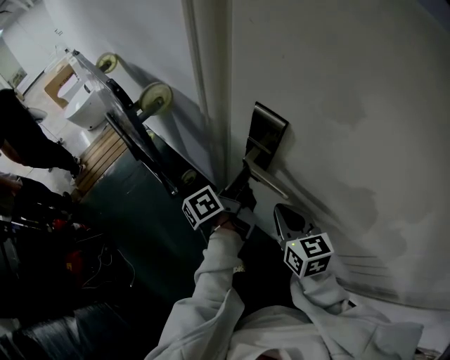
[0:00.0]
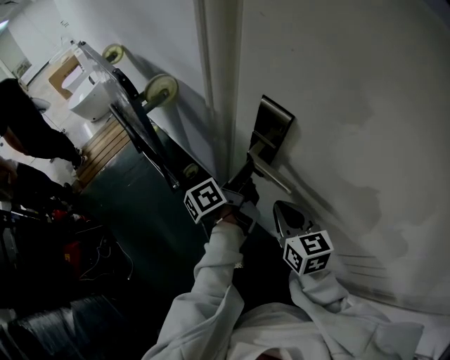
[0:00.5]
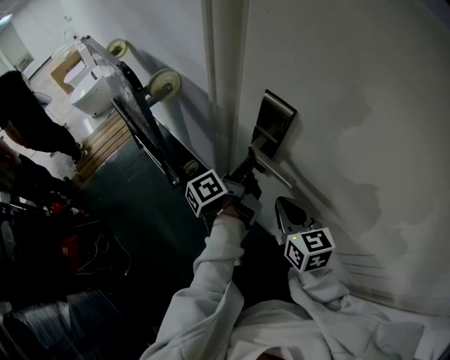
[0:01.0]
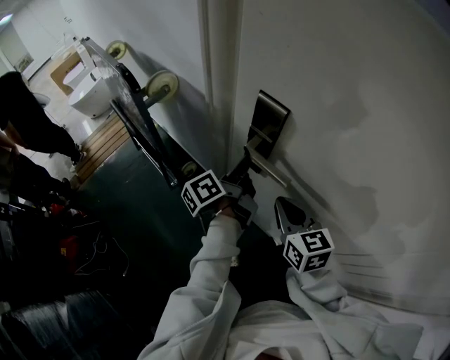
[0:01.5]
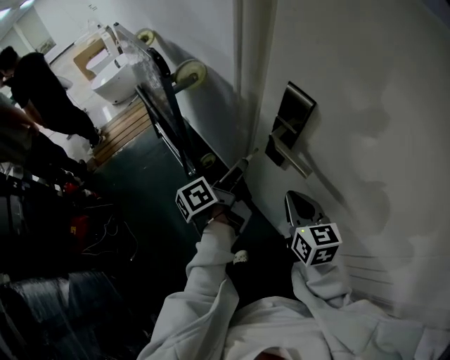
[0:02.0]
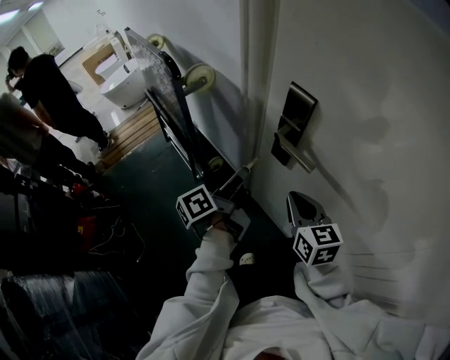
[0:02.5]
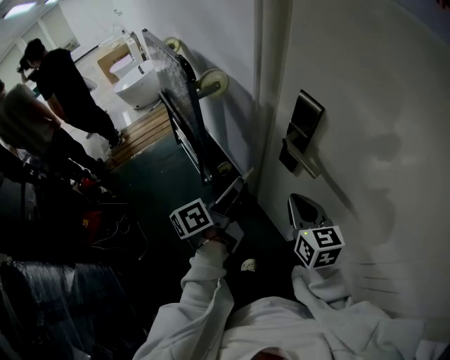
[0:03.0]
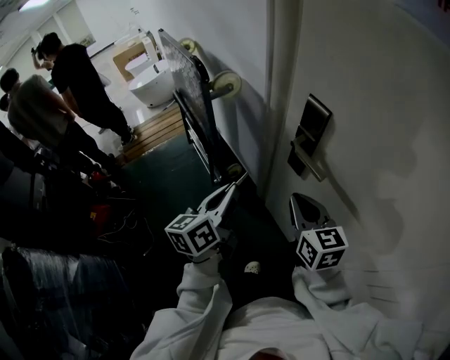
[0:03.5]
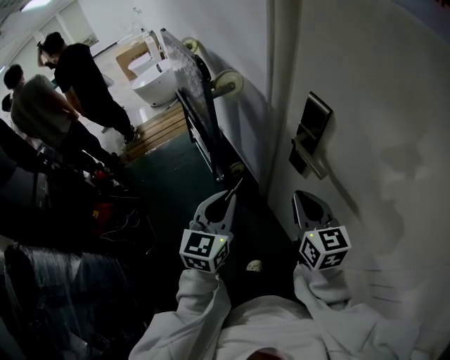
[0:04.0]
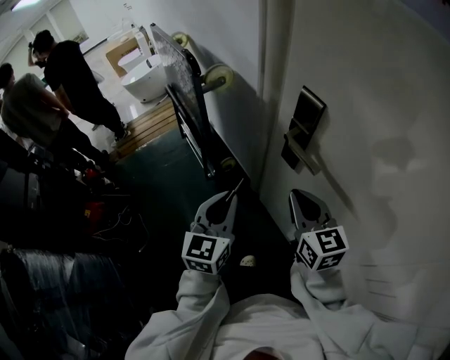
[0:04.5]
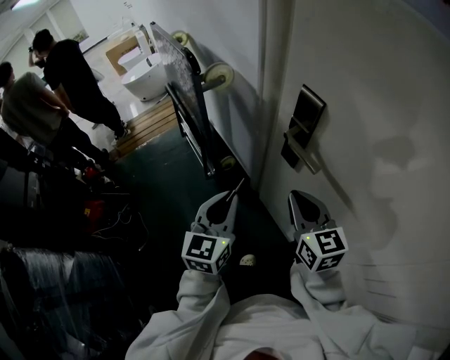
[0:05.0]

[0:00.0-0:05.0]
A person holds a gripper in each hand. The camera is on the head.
0:00.0 to 0:02.5: The left gripper goes approximately 10 cm backward and to the left.
0:02.5 to 0:05.0: The left gripper goes roughly 10 cm backward, and rotates around the line of its fingers by roughly 70 degrees, clockwise from behind.

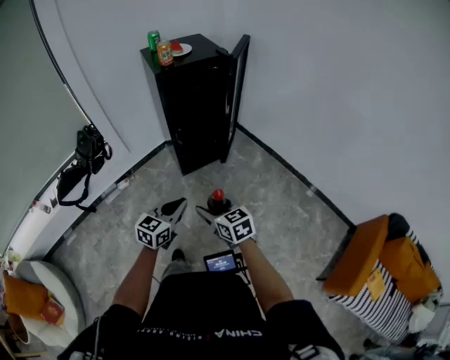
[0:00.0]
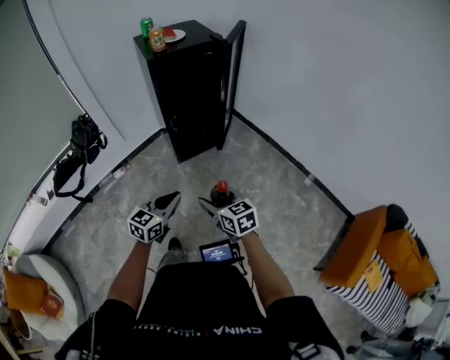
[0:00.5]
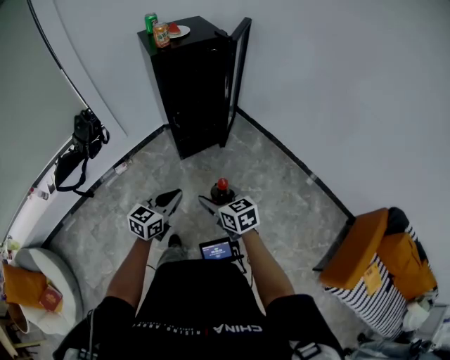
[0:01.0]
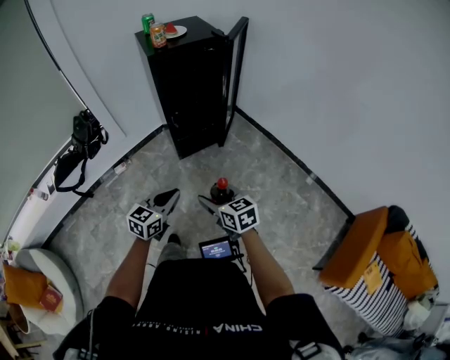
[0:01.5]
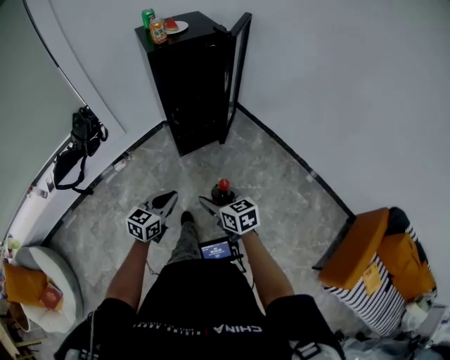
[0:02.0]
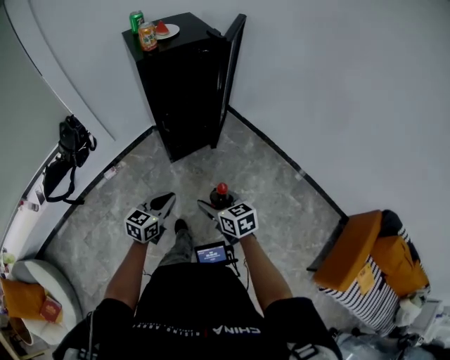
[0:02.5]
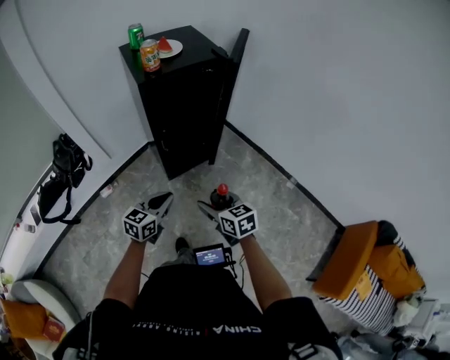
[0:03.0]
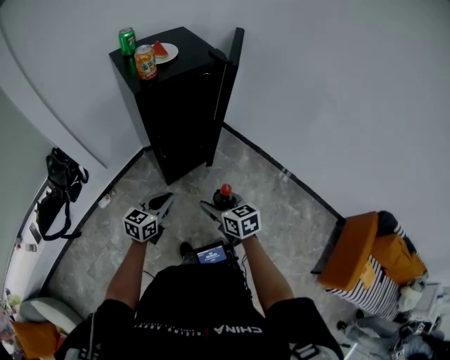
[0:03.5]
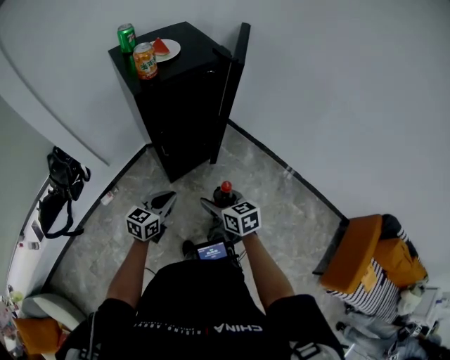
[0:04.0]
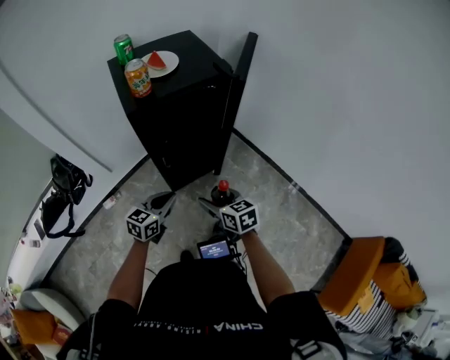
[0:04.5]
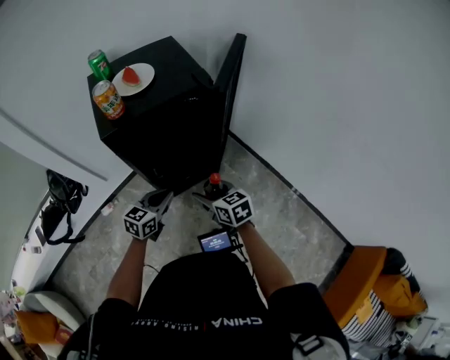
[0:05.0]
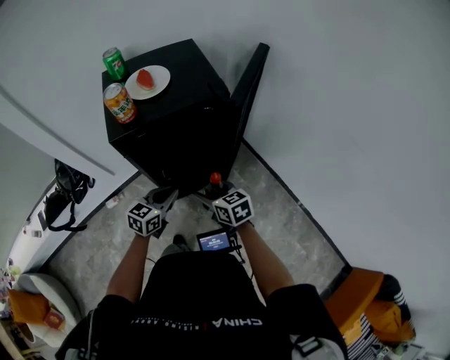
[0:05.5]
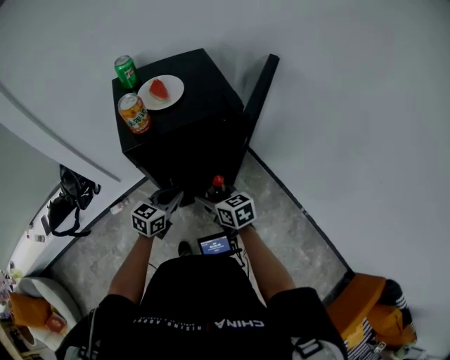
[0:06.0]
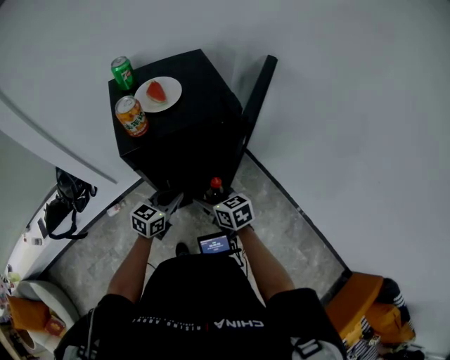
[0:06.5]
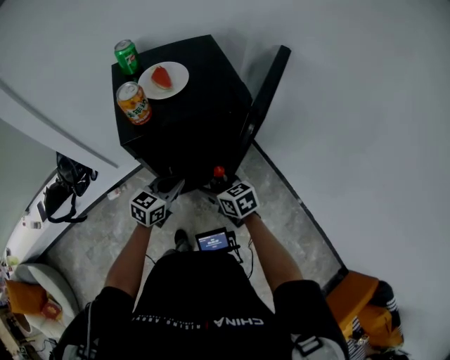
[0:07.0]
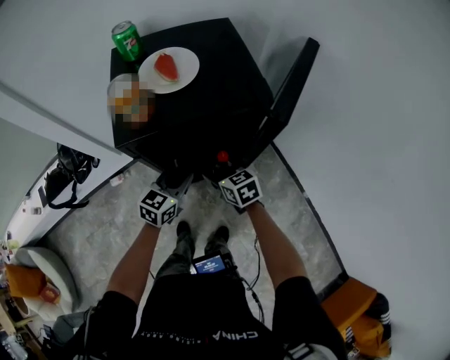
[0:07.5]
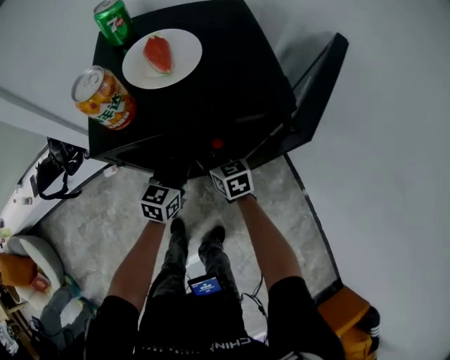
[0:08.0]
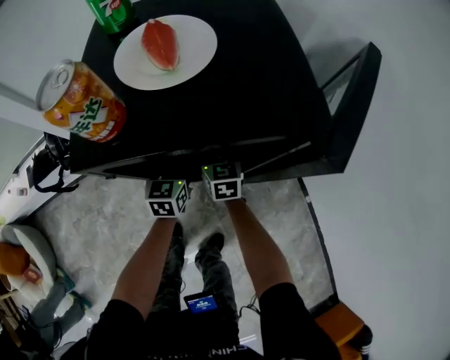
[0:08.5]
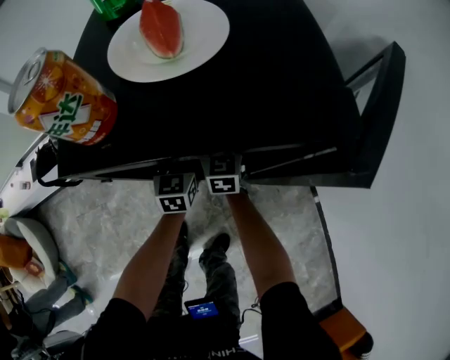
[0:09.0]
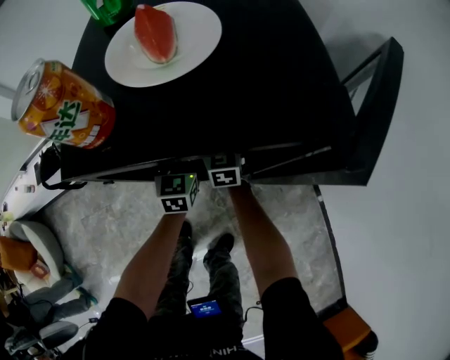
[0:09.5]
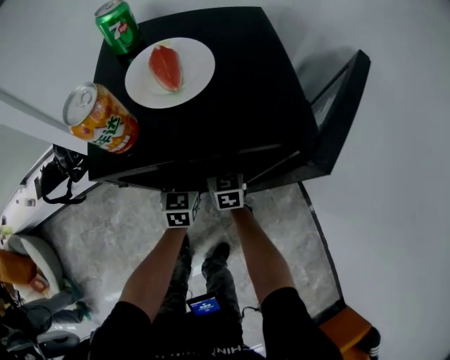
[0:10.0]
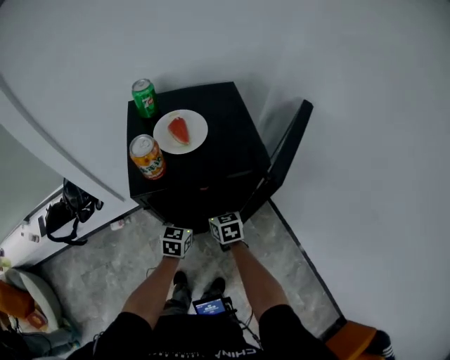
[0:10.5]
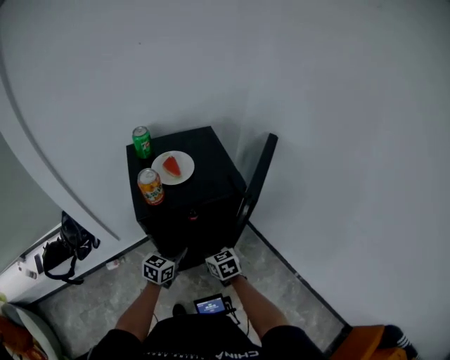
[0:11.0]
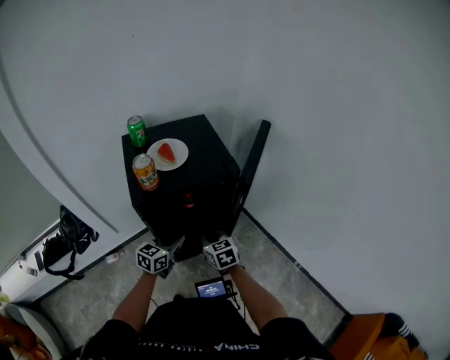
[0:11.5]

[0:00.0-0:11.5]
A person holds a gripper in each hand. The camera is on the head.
0:00.0 to 0:02.0: The right gripper moves approximately 5 cm.
0:02.0 to 0:04.0: Both grippers move forward, approximately 25 cm.
0:04.0 to 0:06.0: The two grippers go approximately 25 cm forward.
0:06.0 to 0:07.5: The left gripper moves forward, about 5 cm. The right gripper travels forward and downward by approximately 10 cm.
0:07.5 to 0:09.5: The right gripper goes about 20 cm forward, and turns by some 20 degrees; the left gripper travels forward and downward by roughly 20 cm, and changes its angle by approximately 40 degrees.
0:09.5 to 0:11.5: The two grippers go roughly 25 cm backward and upward. The right gripper closes, while the left gripper swivels approximately 50 degrees.

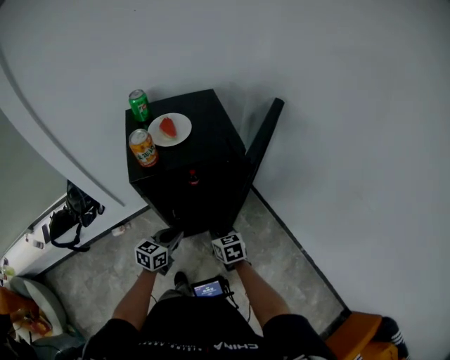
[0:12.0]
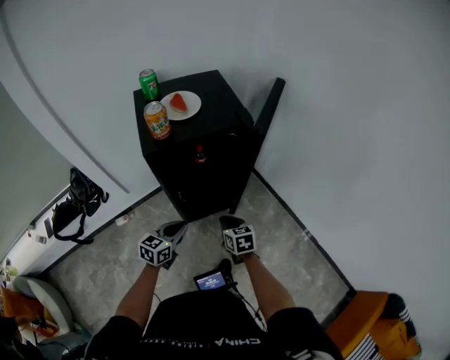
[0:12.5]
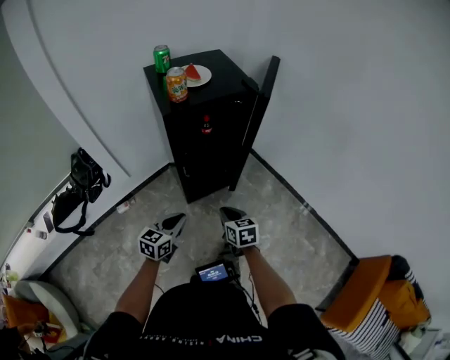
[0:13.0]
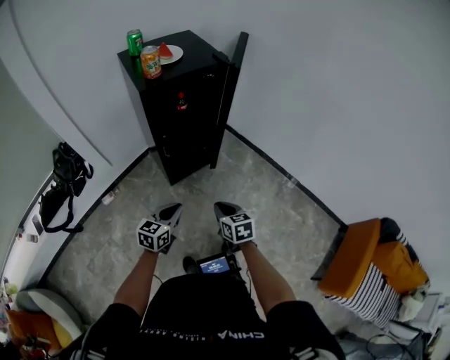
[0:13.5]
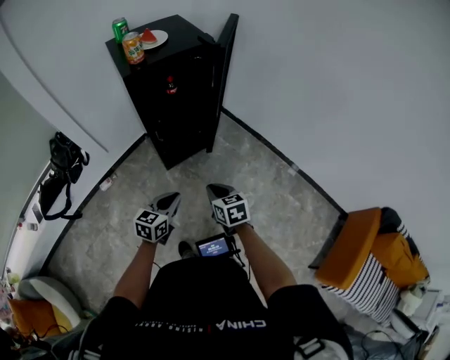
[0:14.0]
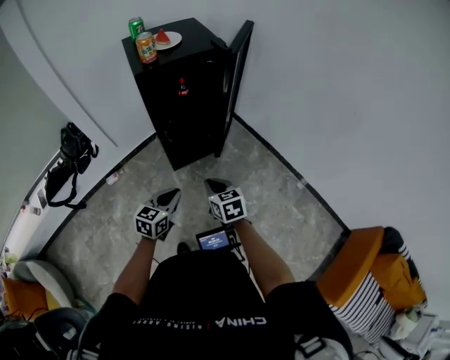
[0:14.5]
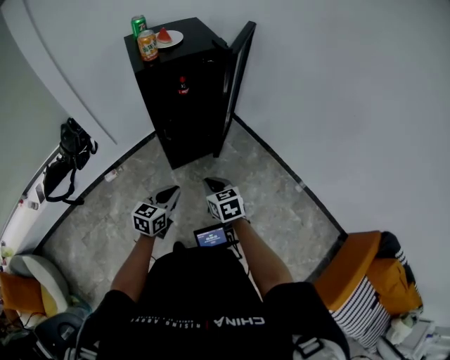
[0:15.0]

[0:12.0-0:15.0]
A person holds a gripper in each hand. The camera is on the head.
0:12.0 to 0:13.5: The two grippers go about 30 cm backward.
0:13.5 to 0:15.0: The left gripper heads to the right, covering about 5 cm.

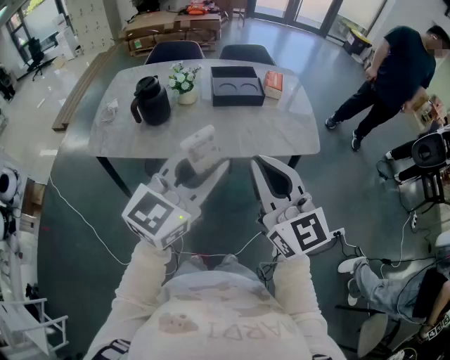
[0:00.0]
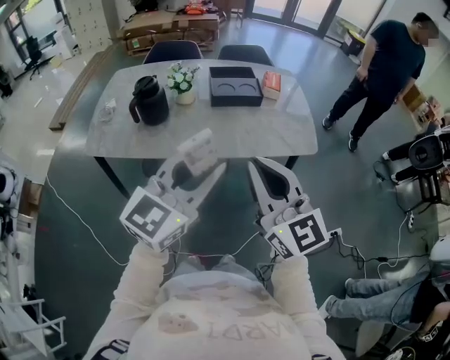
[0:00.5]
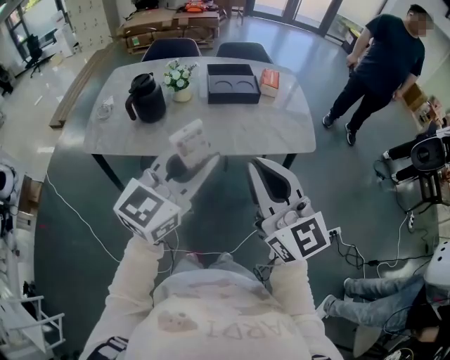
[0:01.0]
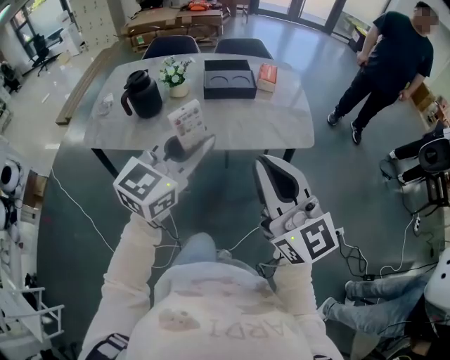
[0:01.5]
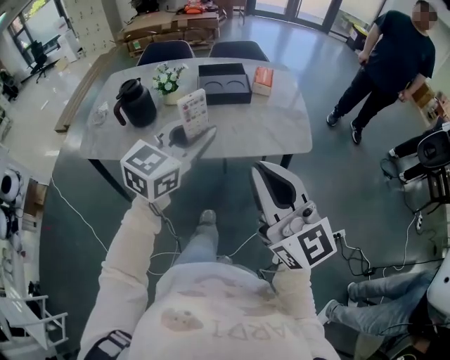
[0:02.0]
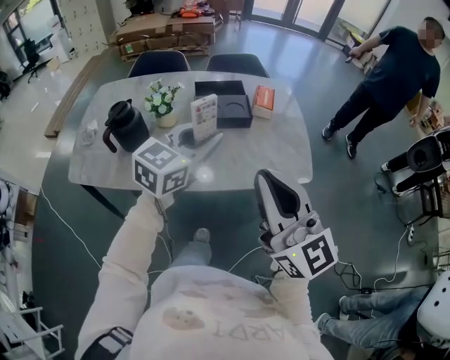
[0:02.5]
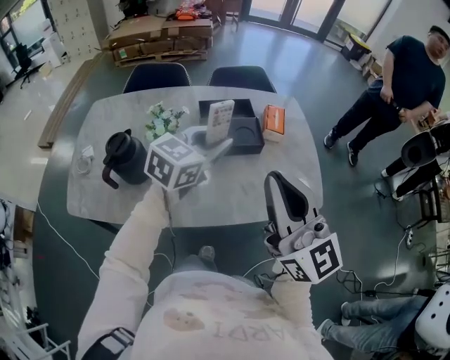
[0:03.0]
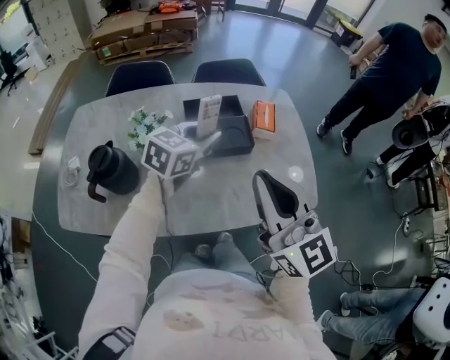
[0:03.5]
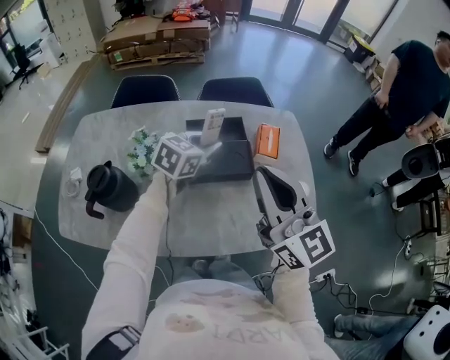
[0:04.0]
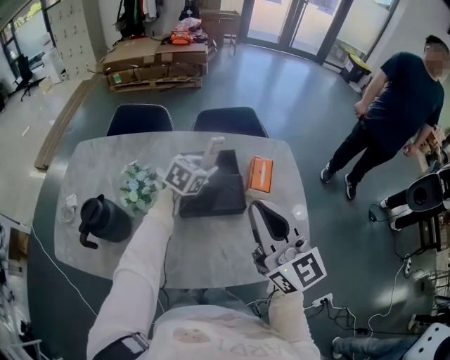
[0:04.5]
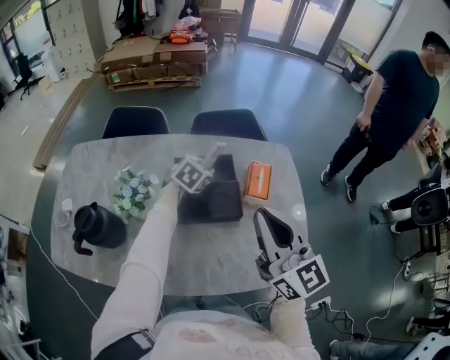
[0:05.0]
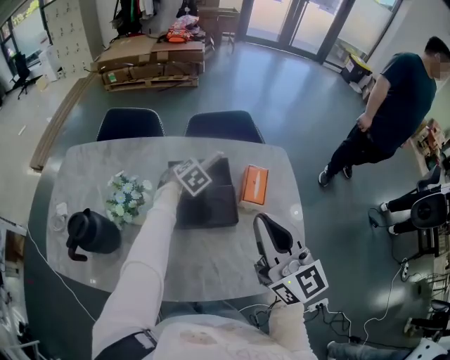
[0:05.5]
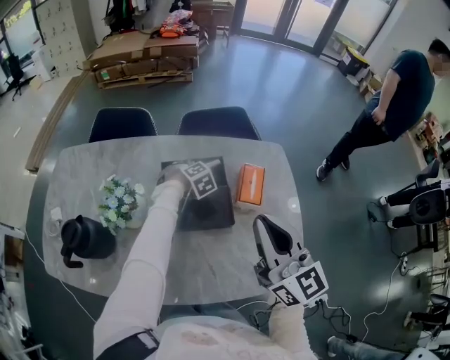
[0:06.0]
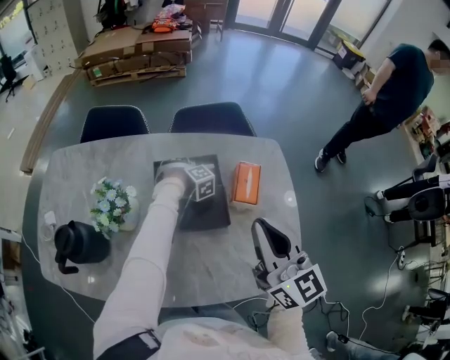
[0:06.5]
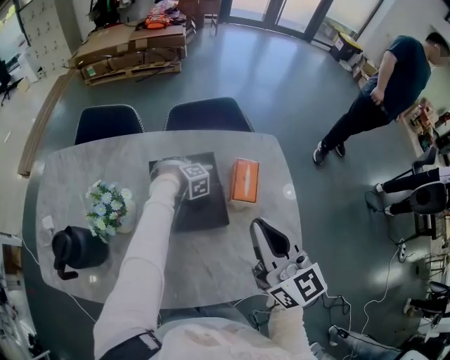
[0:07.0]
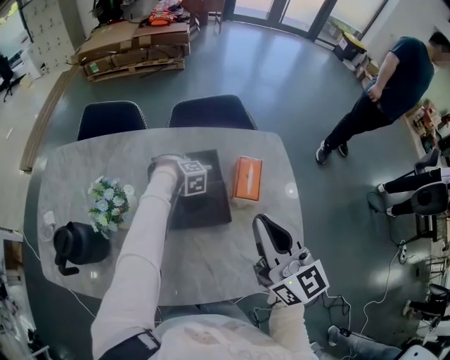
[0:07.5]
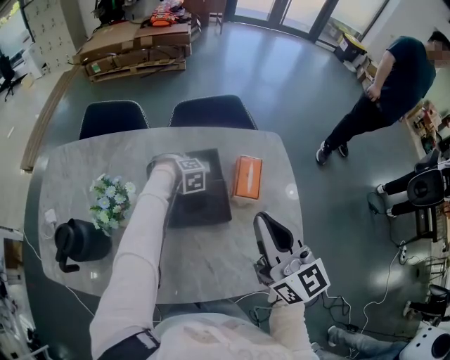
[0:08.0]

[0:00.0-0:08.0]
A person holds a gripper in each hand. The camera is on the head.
0:00.0 to 0:02.0: The left gripper travels forward and to the right by approximately 10 cm, while the right gripper is displaced to the right by approximately 10 cm.
0:02.0 to 0:04.0: Both grippers are carried forward, roughly 40 cm. The left gripper swivels approximately 20 degrees.
0:04.0 to 0:06.0: The left gripper is displaced downward and forward by some 25 cm, and tips its fingers downward by roughly 40 degrees. Meanwhile the right gripper heads forward, to the right and downward, covering approximately 15 cm.
0:06.0 to 0:08.0: The left gripper changes its angle by approximately 20 degrees.
